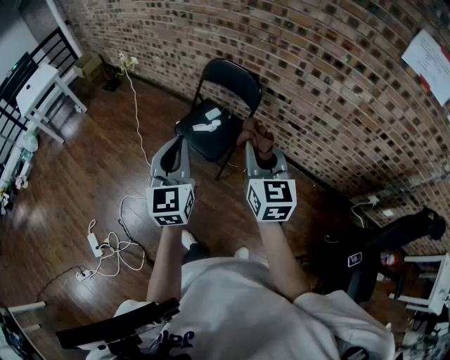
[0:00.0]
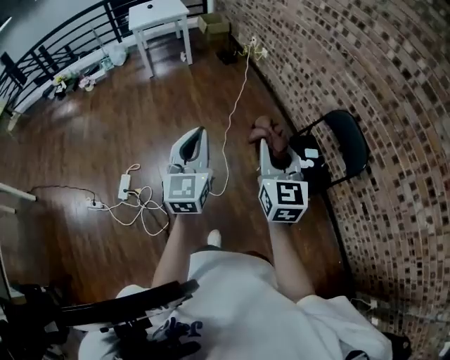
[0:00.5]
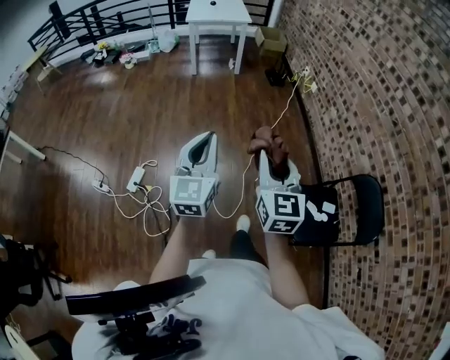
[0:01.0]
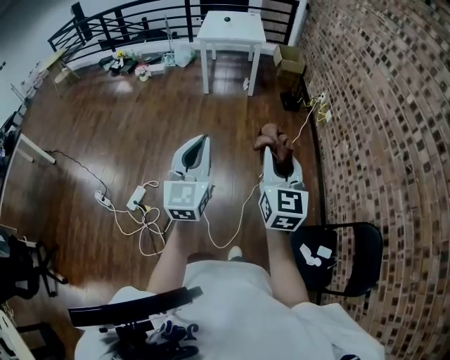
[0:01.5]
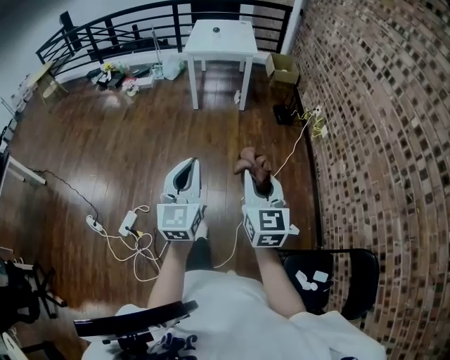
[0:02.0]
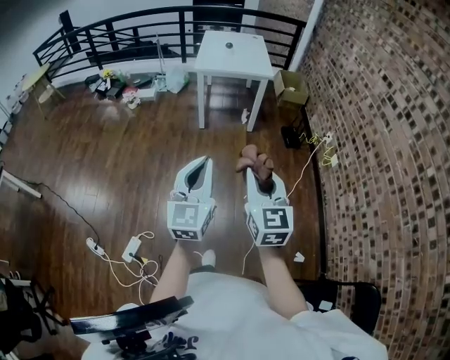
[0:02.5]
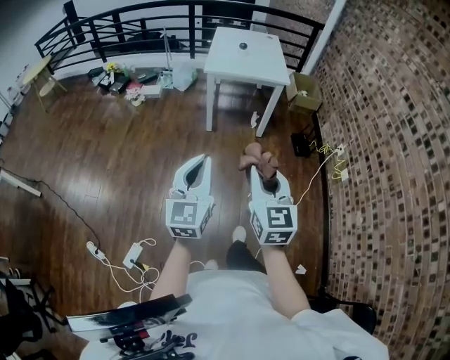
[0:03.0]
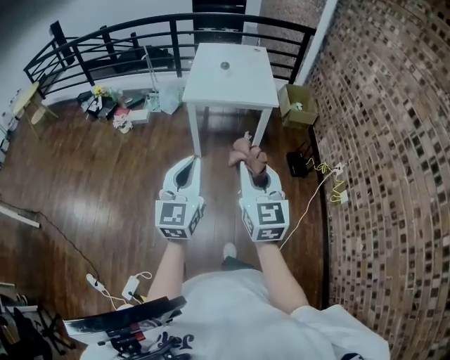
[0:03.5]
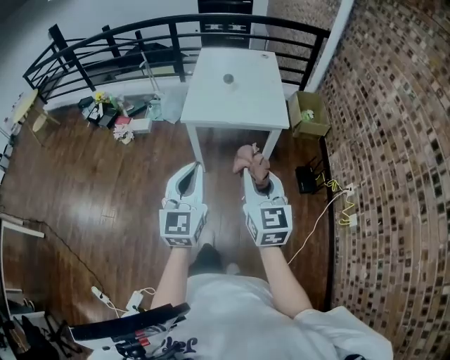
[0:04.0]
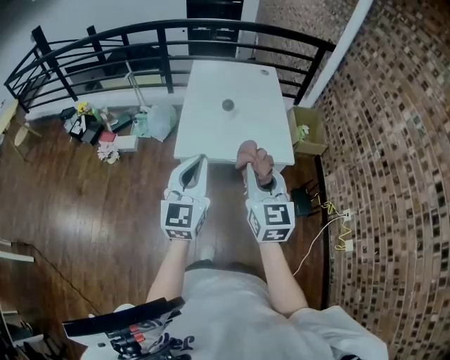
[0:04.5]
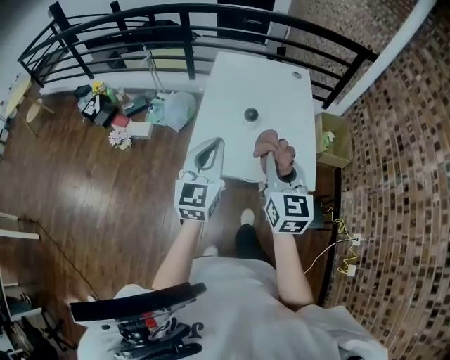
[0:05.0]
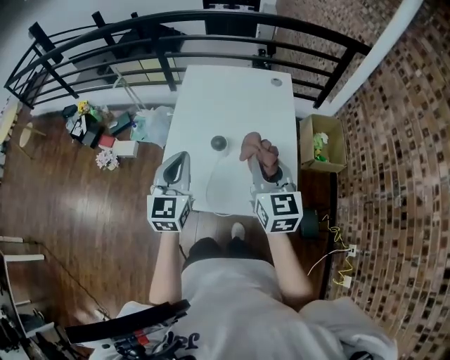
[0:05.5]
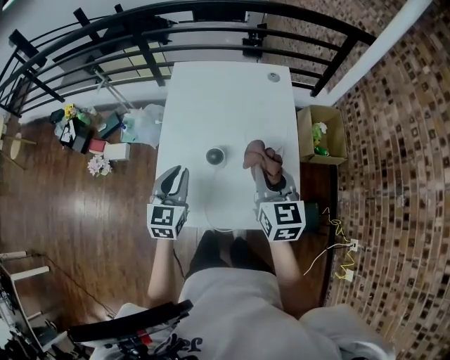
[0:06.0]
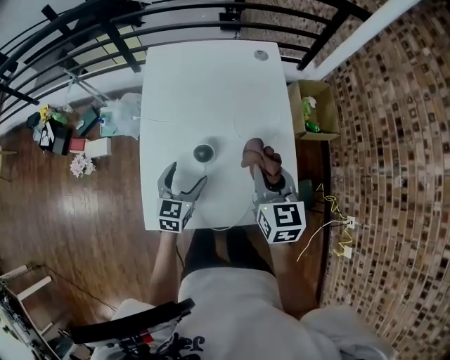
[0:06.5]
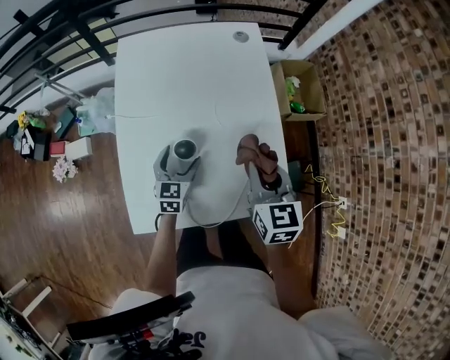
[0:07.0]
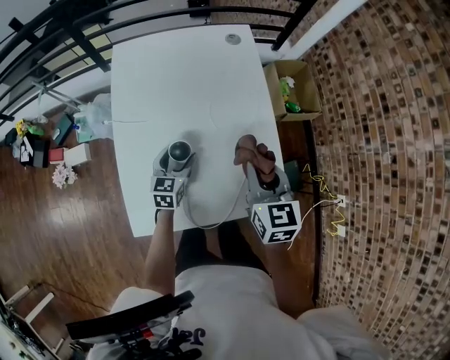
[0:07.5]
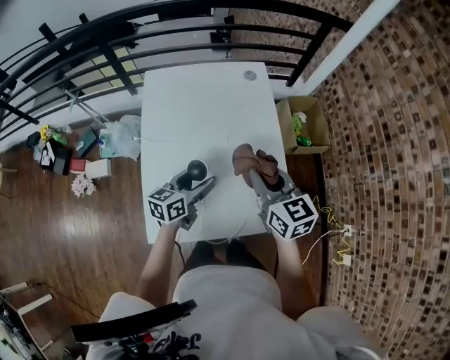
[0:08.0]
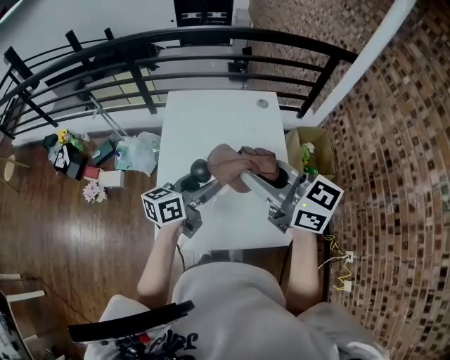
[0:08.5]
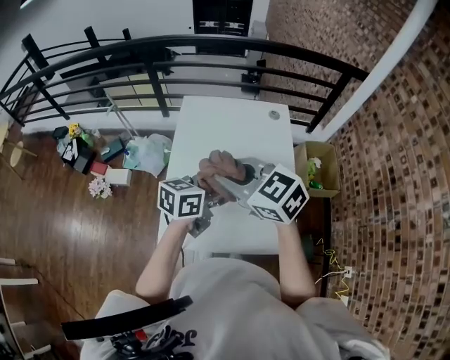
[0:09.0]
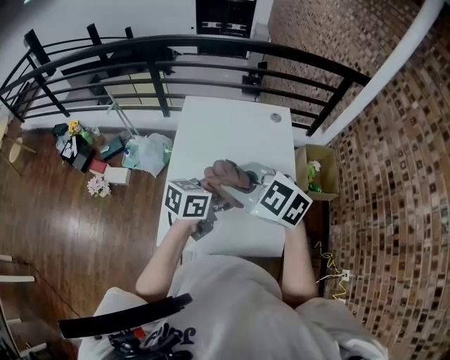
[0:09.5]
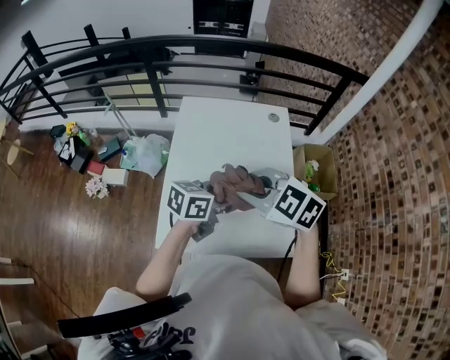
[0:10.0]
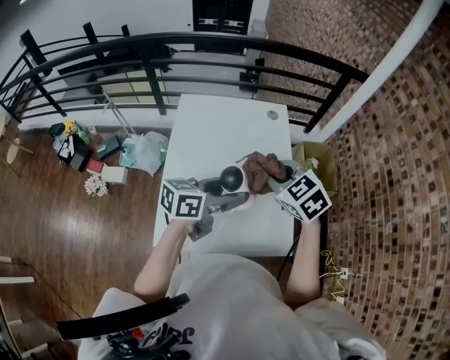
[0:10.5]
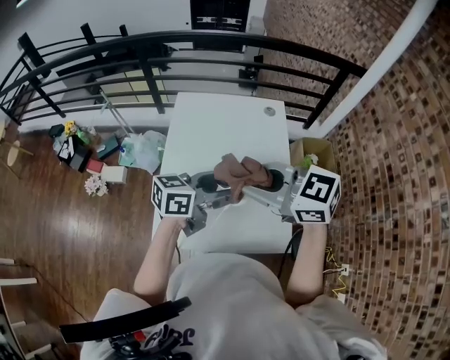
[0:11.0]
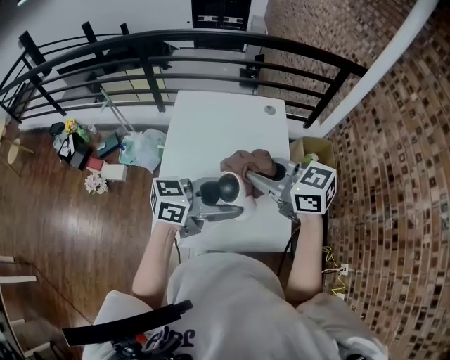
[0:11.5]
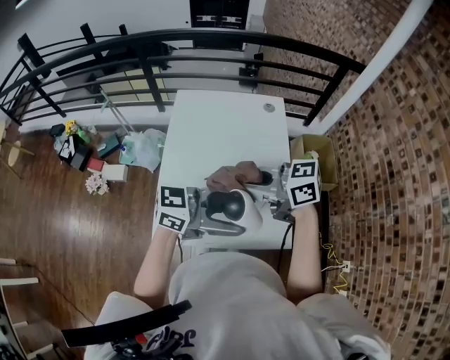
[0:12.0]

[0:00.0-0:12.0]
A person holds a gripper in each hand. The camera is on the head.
0:00.0 to 0:02.0: Both grippers are carried approximately 80 cm. The right gripper turns by roughly 50 degrees. The left gripper rotates some 50 degrees.
0:02.0 to 0:04.0: The two grippers travel together, forward, some 70 cm.
0:04.0 to 0:06.0: The pair of grippers is taken forward, some 60 cm. The left gripper swivels roughly 20 degrees.
0:06.0 to 0:08.0: The left gripper is displaced to the right and forward by roughly 10 cm, goes downward and returns, roughly 20 cm each way, turns by approximately 50 degrees, and opens up.
0:08.0 to 0:10.0: The left gripper goes some 15 cm upward. The right gripper moves roughly 15 cm, and rotates some 60 degrees.
0:10.0 to 0:12.0: The right gripper goes upward and returns, approximately 5 cm each way, and changes its angle by about 50 degrees; the left gripper moves some 15 cm, and swivels about 40 degrees.

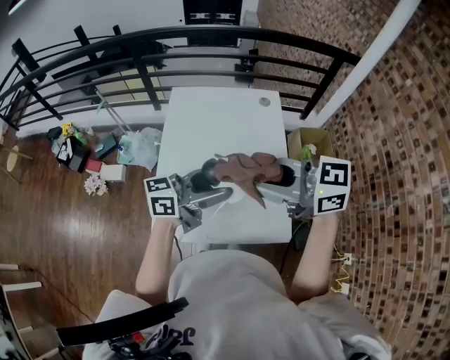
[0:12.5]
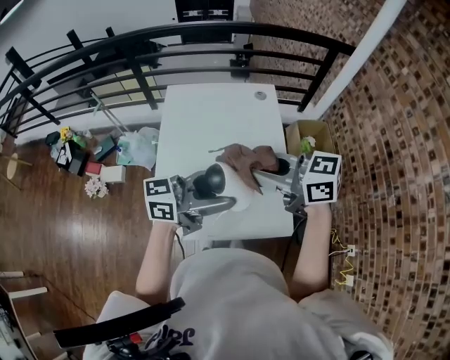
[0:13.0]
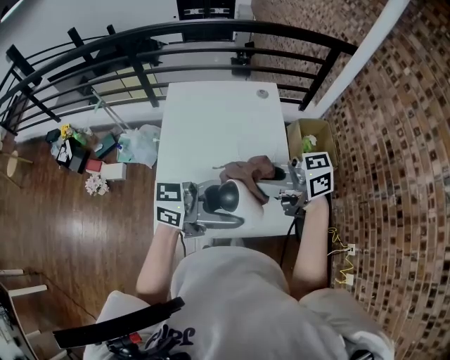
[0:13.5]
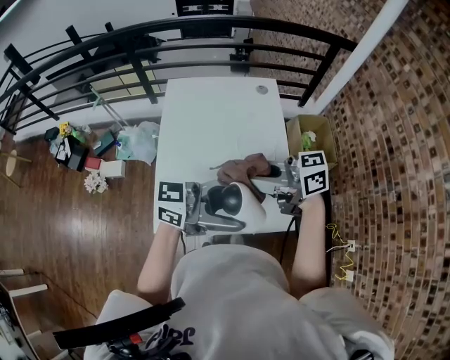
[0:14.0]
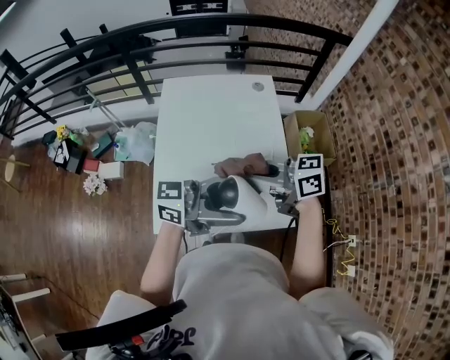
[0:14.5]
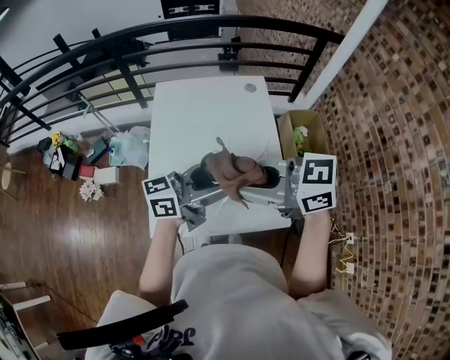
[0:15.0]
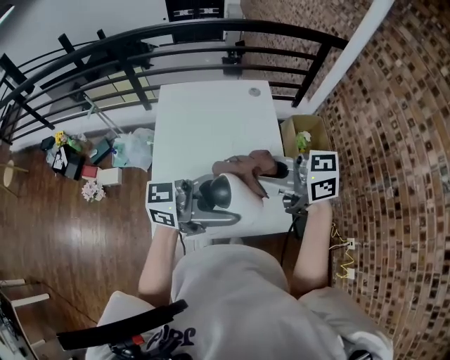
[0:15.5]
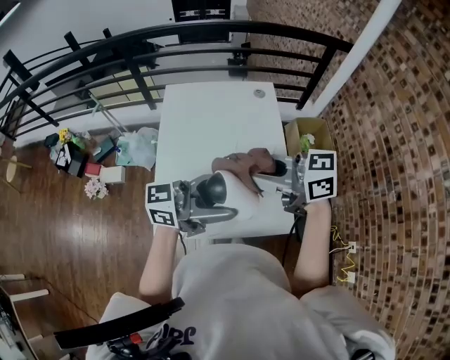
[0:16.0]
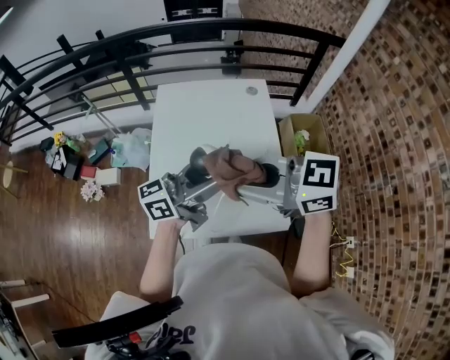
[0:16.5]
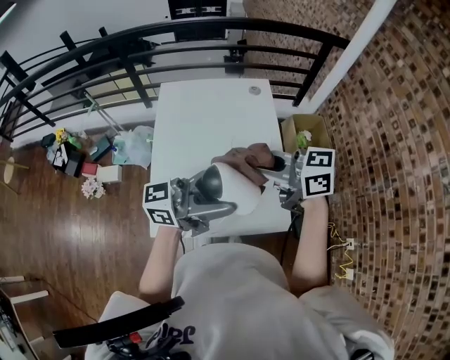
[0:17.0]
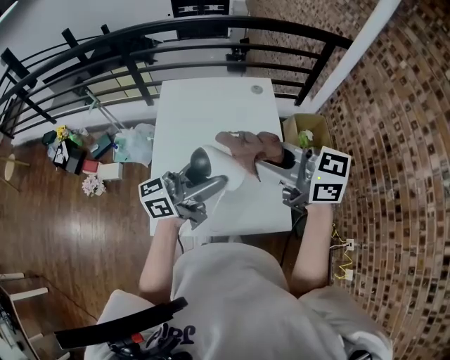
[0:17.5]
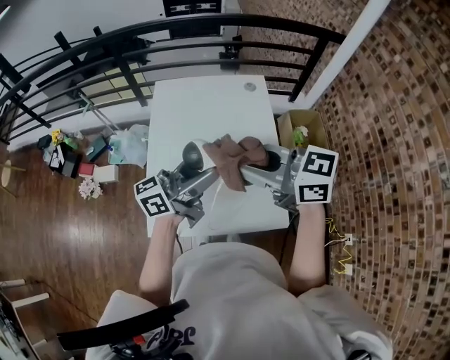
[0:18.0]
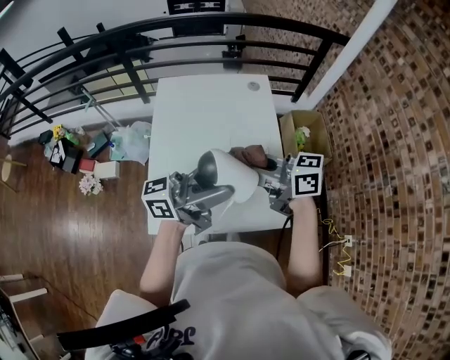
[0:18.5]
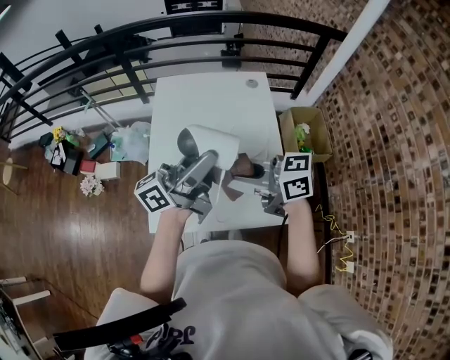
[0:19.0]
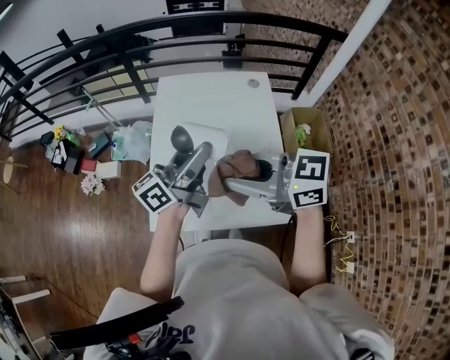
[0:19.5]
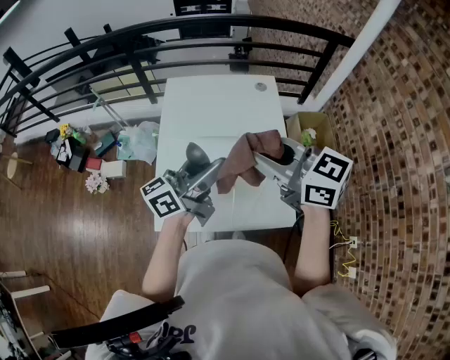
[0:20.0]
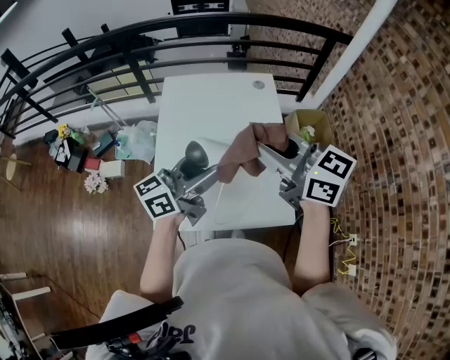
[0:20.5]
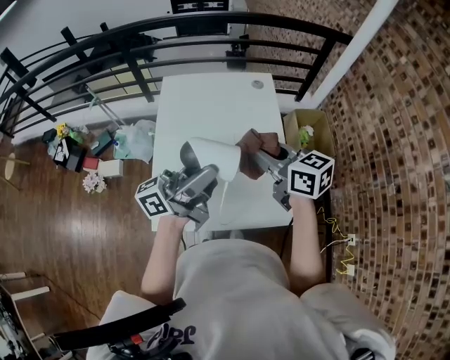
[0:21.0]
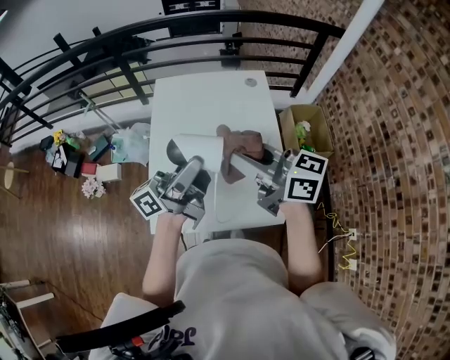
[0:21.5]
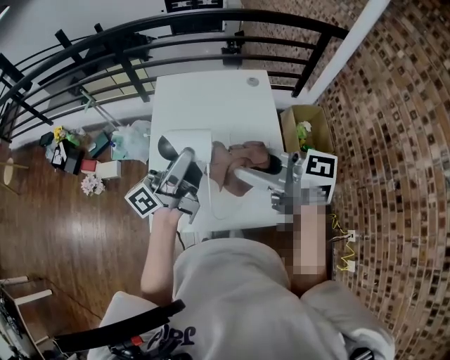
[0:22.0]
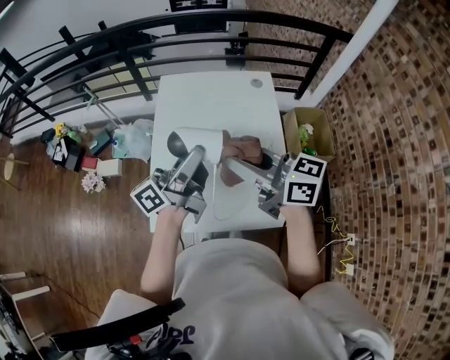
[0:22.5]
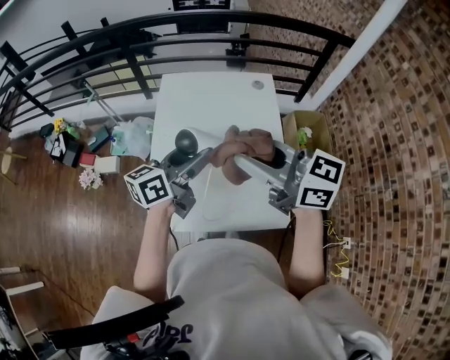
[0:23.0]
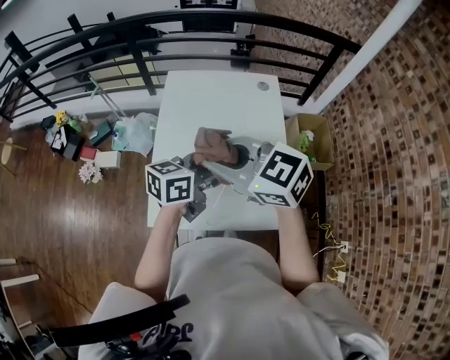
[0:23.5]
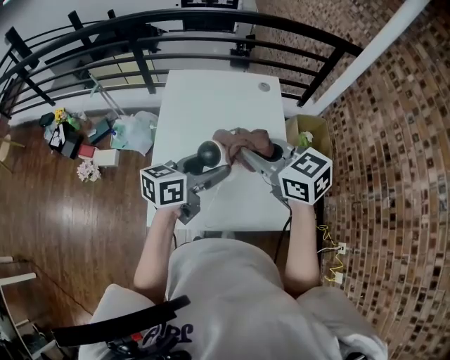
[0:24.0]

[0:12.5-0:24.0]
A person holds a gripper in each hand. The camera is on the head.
0:12.5 to 0:14.5: The right gripper heads downward, covering roughly 10 cm, and turns by some 20 degrees; the left gripper moves some 10 cm, and rotates some 20 degrees.
0:14.5 to 0:16.5: The left gripper ends up some 10 cm from where it was, and changes its angle by roughly 30 degrees. Meanwhile the right gripper heads upward, covering approximately 10 cm, and turns by about 30 degrees.
0:16.5 to 0:18.5: The right gripper moves up and down over roughly 10 cm, changing direction 2 times, and swivels approximately 30 degrees.
0:18.5 to 0:20.0: The right gripper goes roughly 10 cm upward, and rotates some 20 degrees, while the left gripper ends up some 5 cm from where it was, and changes its angle by roughly 30 degrees.
0:20.0 to 0:22.0: The left gripper turns by some 20 degrees. Meanwhile the right gripper goes downward and returns, some 10 cm each way.
0:22.0 to 0:24.0: The left gripper moves downward, approximately 10 cm, and tips its fingers downward by approximately 40 degrees. Meanwhile the right gripper goes some 10 cm forward and downward, moves some 10 cm to the left and comes back, and turns by some 30 degrees.

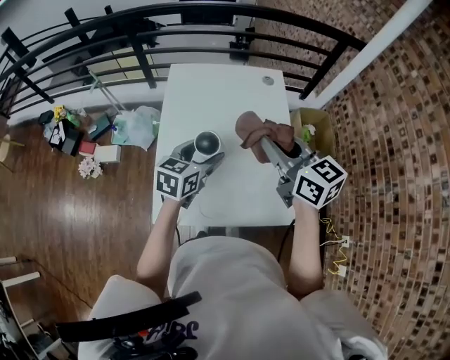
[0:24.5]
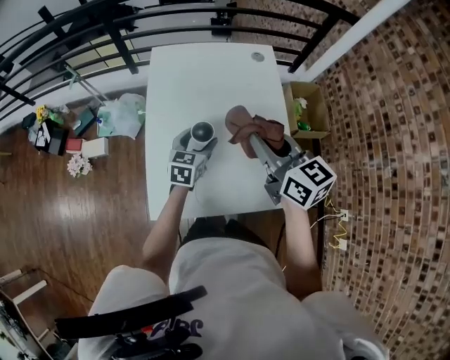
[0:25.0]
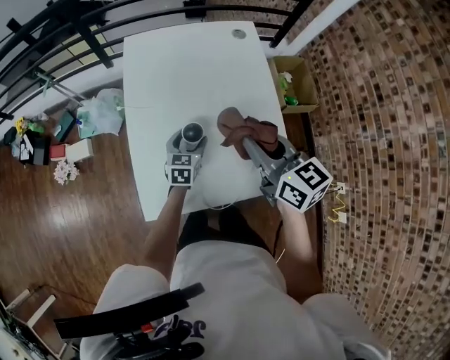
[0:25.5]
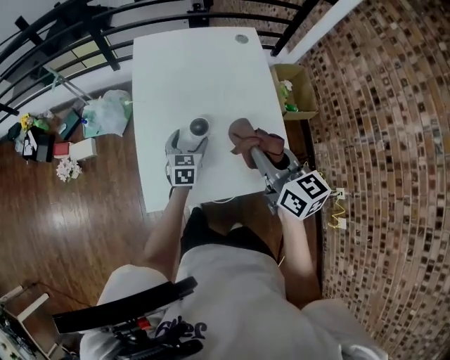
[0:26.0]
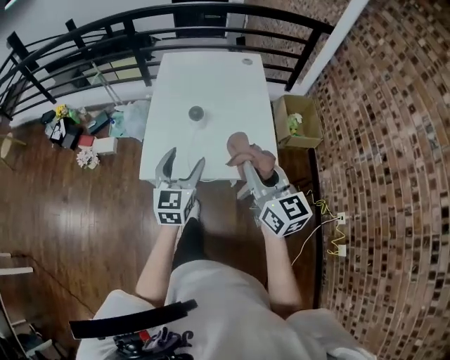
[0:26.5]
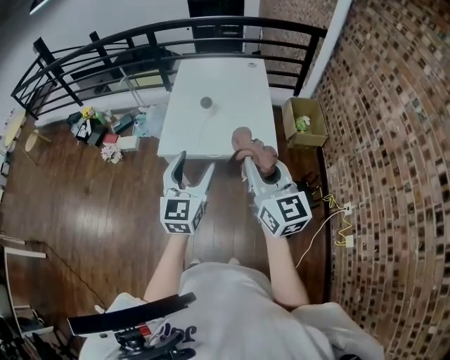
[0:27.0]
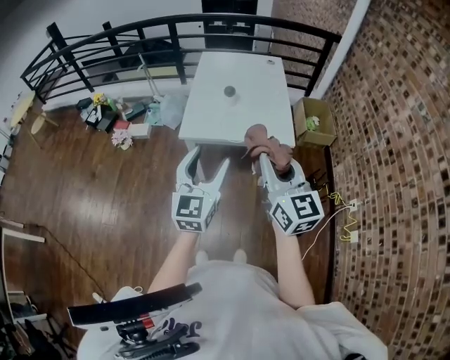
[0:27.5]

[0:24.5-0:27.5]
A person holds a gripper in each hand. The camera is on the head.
0:24.5 to 0:26.0: The left gripper is displaced downward by about 20 cm. The right gripper shifts about 15 cm downward and backward.
0:26.0 to 0:27.5: Both grippers are carried backward, roughly 50 cm. The right gripper swivels roughly 20 degrees, while the left gripper moves upward, about 35 cm, and tips its fingers upward by roughly 30 degrees.
